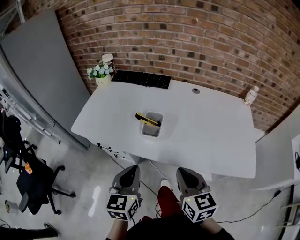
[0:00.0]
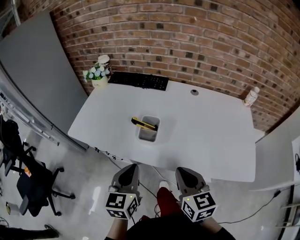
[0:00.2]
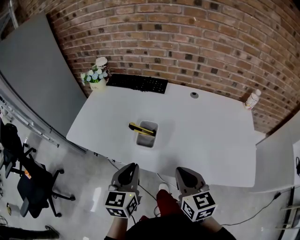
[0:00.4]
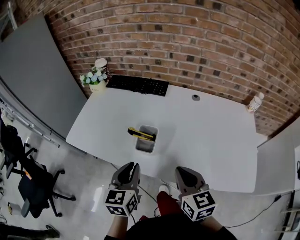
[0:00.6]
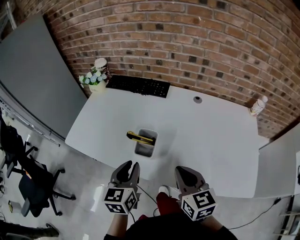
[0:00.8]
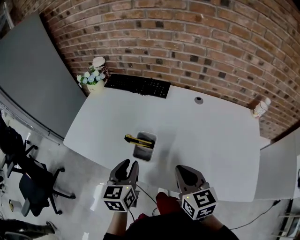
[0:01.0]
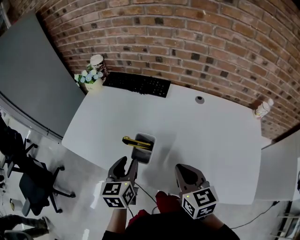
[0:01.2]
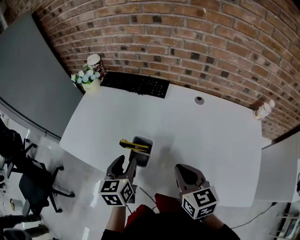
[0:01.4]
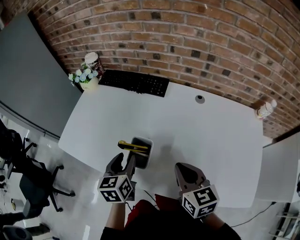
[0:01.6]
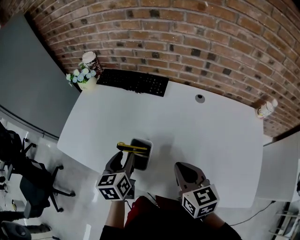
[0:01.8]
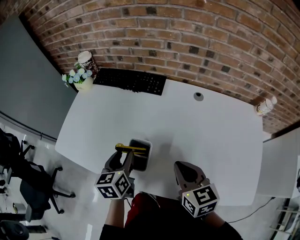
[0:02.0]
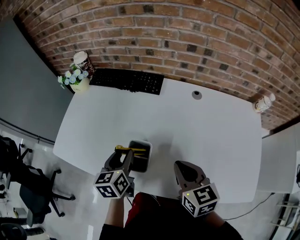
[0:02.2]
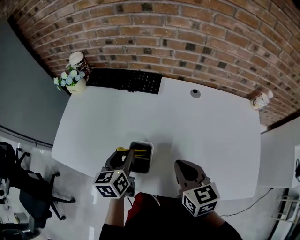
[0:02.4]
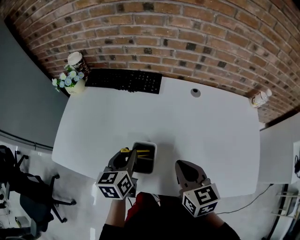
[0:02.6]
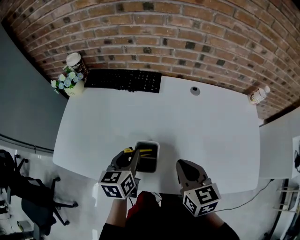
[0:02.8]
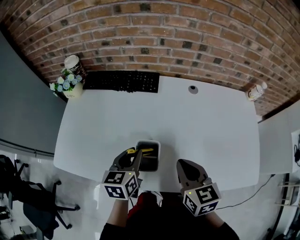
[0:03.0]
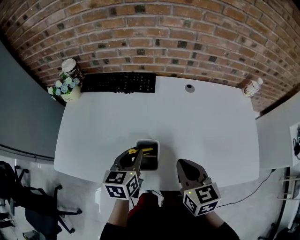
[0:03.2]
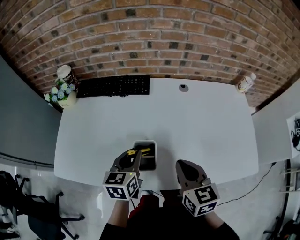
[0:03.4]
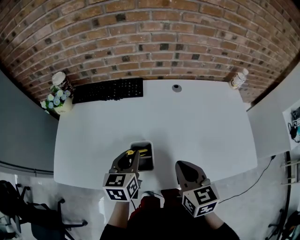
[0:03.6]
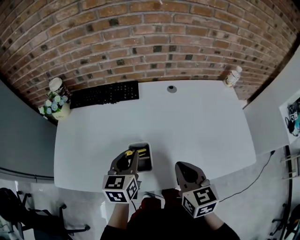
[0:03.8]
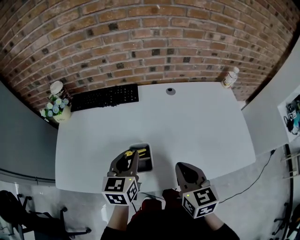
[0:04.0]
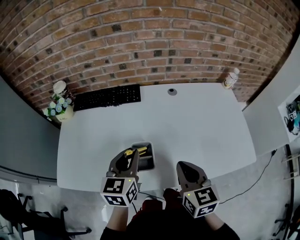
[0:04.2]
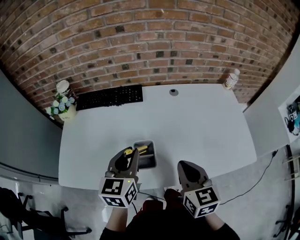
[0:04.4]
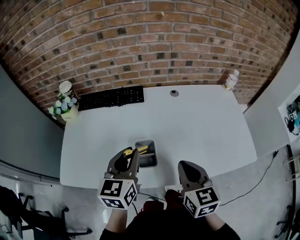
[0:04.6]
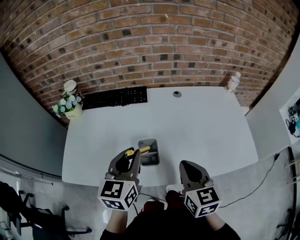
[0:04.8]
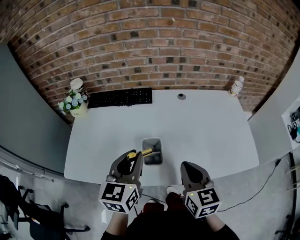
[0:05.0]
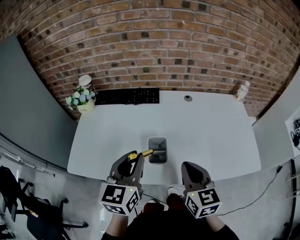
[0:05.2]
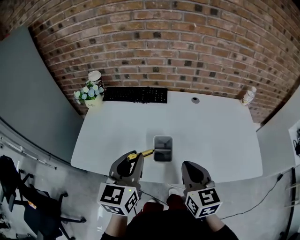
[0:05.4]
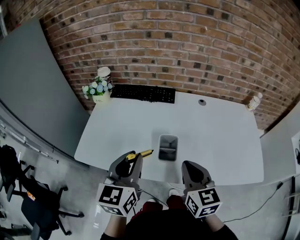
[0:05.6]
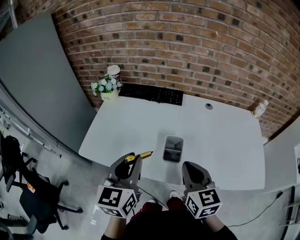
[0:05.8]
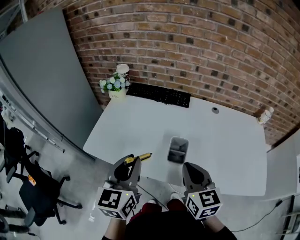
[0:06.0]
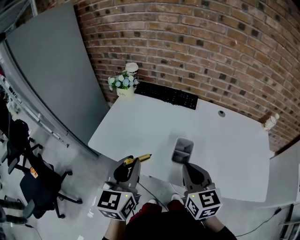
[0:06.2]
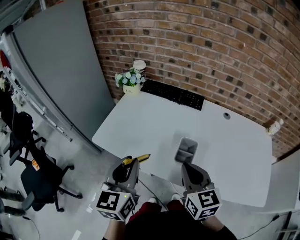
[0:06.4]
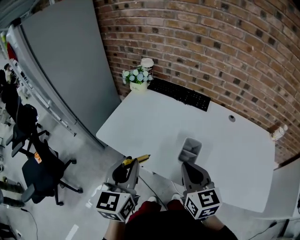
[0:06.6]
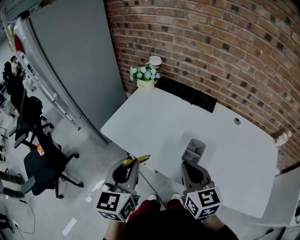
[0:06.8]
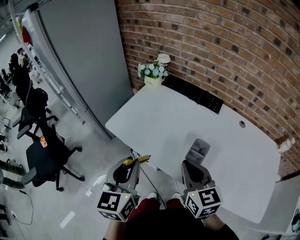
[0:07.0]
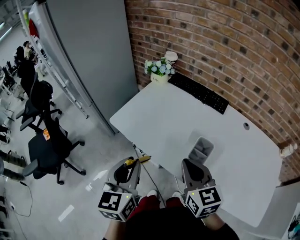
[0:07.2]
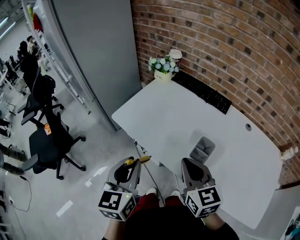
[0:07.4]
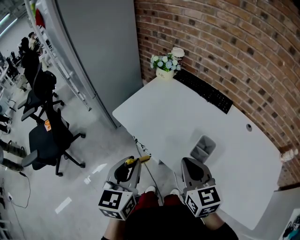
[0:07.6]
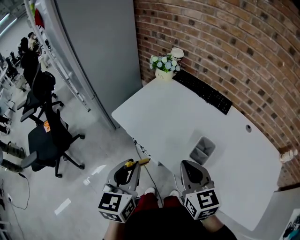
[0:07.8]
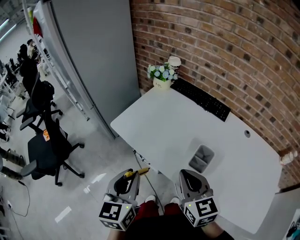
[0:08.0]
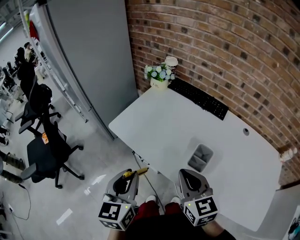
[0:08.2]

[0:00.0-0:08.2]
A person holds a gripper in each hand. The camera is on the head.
0.0 to 1.6 s: The grippers both shift forward by some 20 cm. The left gripper opens.
1.6 to 3.2 s: The left gripper turns by roughly 20 degrees, and closes up.
3.2 to 5.0 s: The left gripper moves upward and backward, approximately 15 cm, and changes its angle by roughly 20 degrees, while the right gripper goes roughly 5 cm backward.
5.0 to 6.6 s: The left gripper shifts by about 20 cm, and turns by roughly 30 degrees, while the right gripper shifts by roughly 15 cm, and rotates roughly 30 degrees.
6.6 to 8.2 s: The left gripper changes place by some 5 cm.

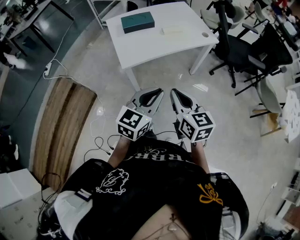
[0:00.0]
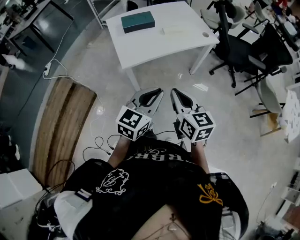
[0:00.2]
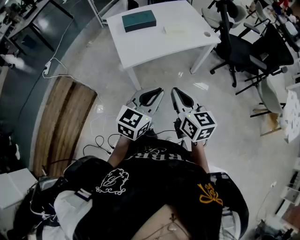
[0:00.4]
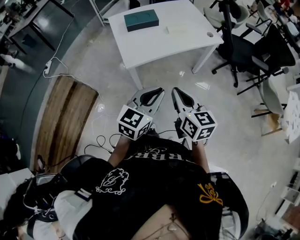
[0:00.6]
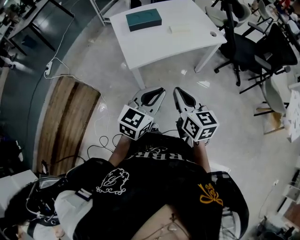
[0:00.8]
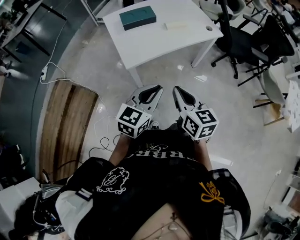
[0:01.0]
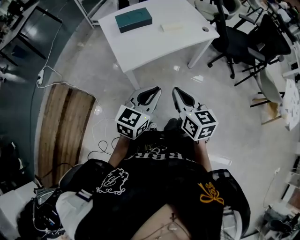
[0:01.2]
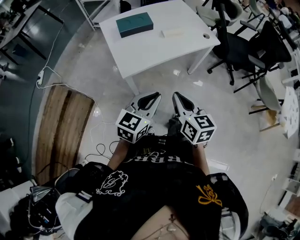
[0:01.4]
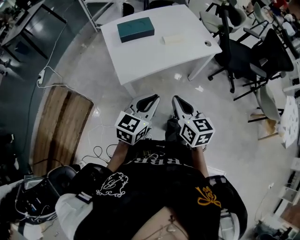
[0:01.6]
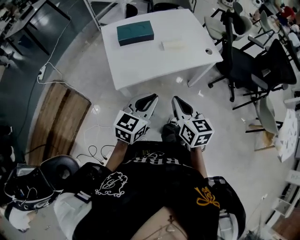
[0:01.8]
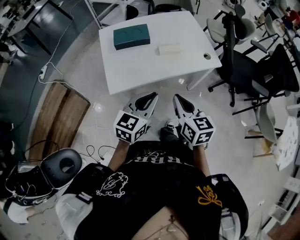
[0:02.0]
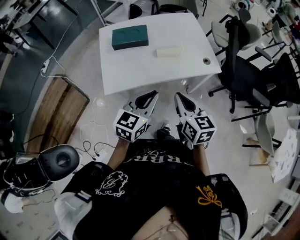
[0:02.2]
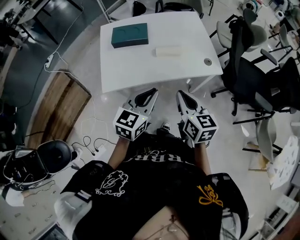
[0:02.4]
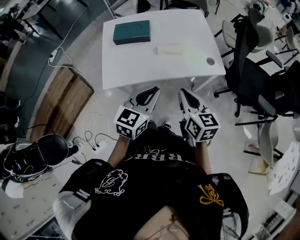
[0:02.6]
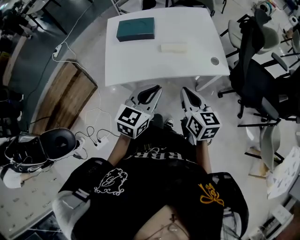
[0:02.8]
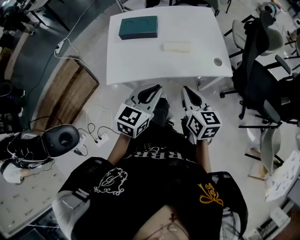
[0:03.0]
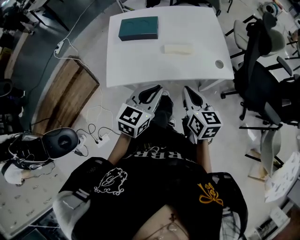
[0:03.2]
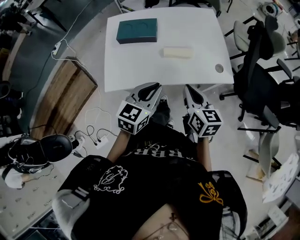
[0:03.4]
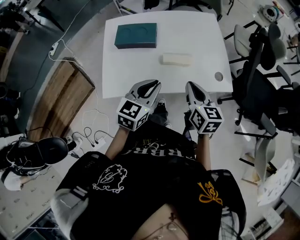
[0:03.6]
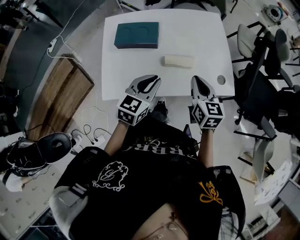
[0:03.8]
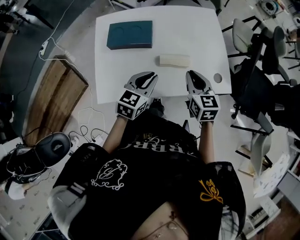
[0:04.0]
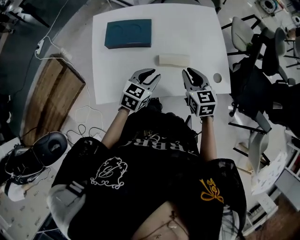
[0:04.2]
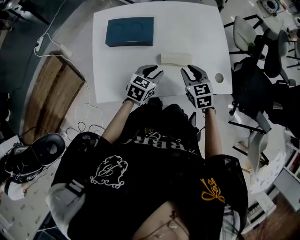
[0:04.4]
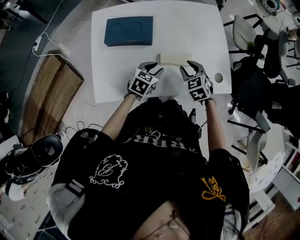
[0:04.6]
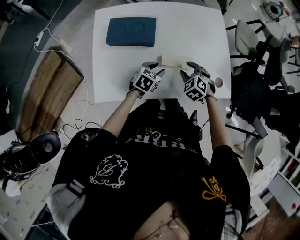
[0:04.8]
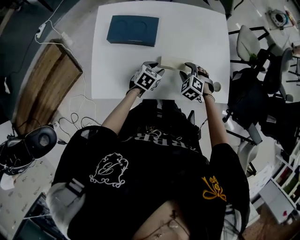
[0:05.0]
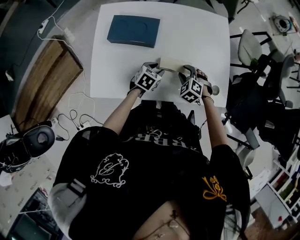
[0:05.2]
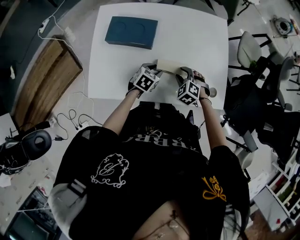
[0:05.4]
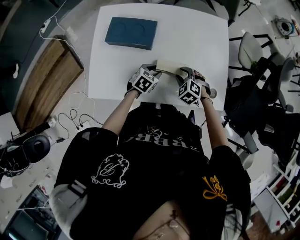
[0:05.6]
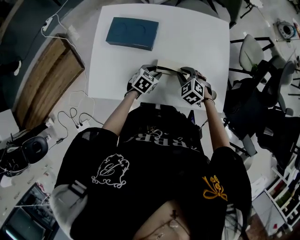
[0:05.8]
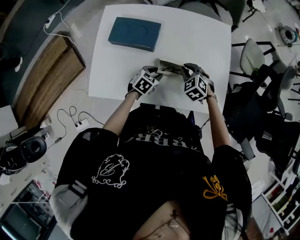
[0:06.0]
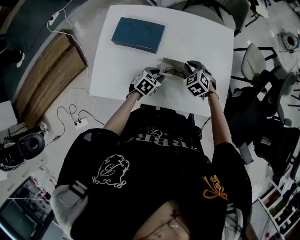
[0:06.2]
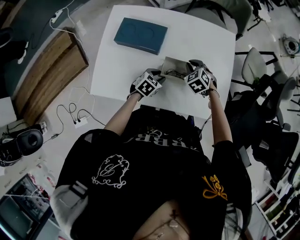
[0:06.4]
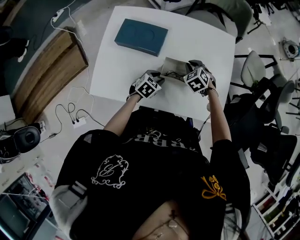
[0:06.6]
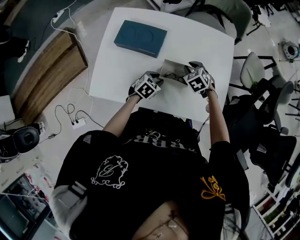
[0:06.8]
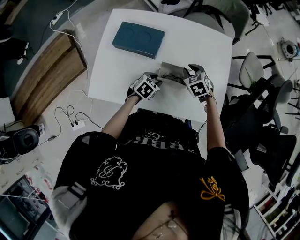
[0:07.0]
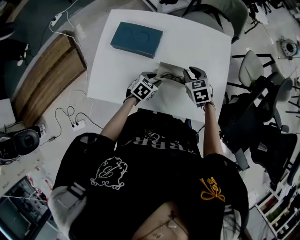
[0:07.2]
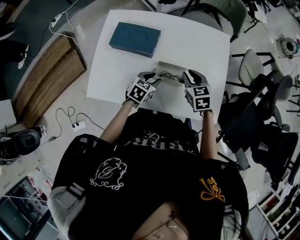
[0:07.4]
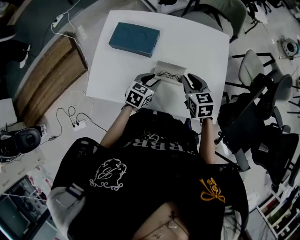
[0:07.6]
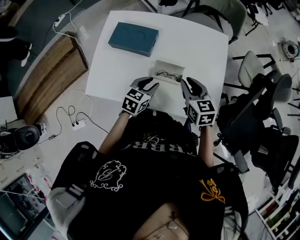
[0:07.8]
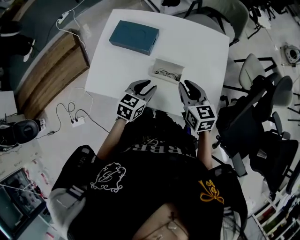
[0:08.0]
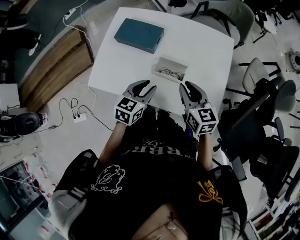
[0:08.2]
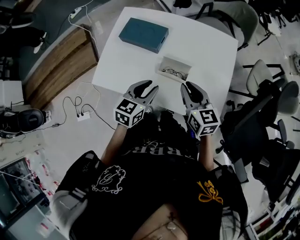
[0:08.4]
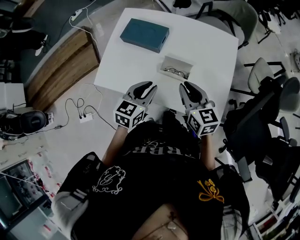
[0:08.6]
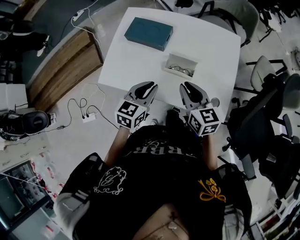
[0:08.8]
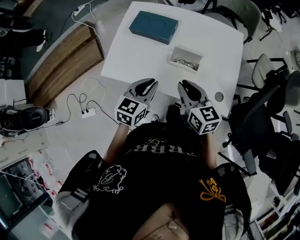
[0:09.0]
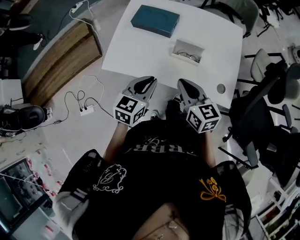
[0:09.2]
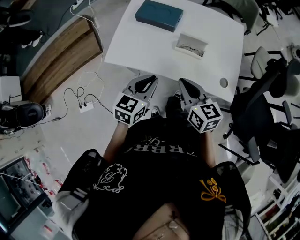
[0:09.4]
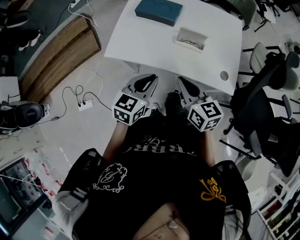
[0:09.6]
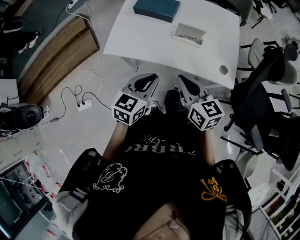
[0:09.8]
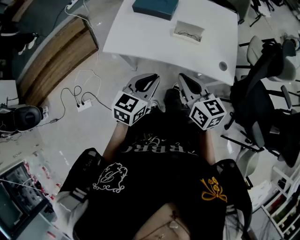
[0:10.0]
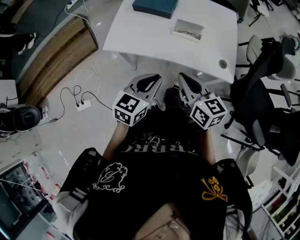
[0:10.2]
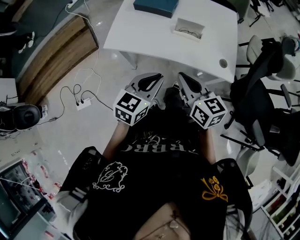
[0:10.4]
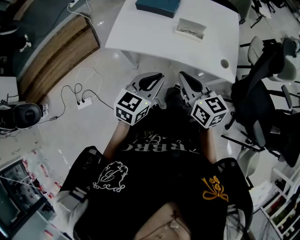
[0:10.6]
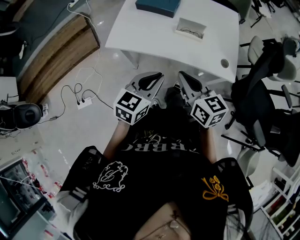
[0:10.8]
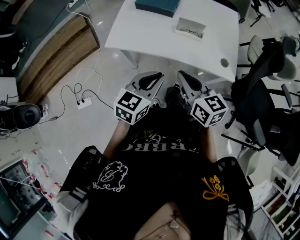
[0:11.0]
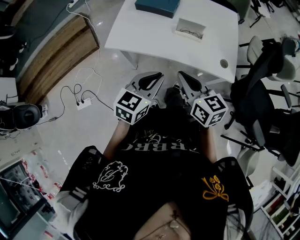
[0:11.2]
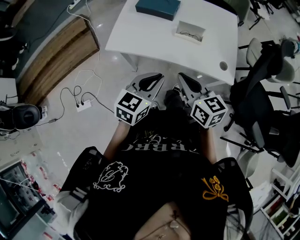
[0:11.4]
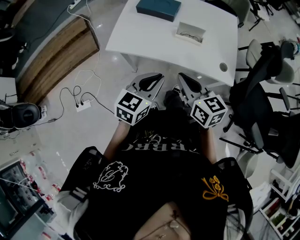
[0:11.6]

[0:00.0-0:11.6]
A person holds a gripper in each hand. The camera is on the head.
0.0 to 1.4 s: The right gripper shifts about 5 cm forward, while the left gripper shifts about 10 cm forward and to the left.
1.4 to 2.8 s: Both grippers travel together forward and to the right, roughly 30 cm. The left gripper swivels roughly 20 degrees.
2.8 to 4.4 s: The two grippers go about 30 cm forward and downward. The right gripper turns by approximately 30 degrees, and opens its fingers.
4.4 to 5.8 s: The grippers both shift downward and forward by approximately 10 cm. The right gripper swivels some 40 degrees.
5.8 to 7.2 s: The right gripper goes some 5 cm forward, and rotates some 30 degrees.
7.2 to 8.8 s: The right gripper goes approximately 20 cm backward and upward, and swivels some 30 degrees, while the left gripper goes some 20 cm upward and backward, and rotates some 30 degrees.
8.8 to 10.2 s: The left gripper travels backward by some 20 cm, while the right gripper goes approximately 25 cm backward and to the left.
10.2 to 11.6 s: There are only small adjustments of the grippers.

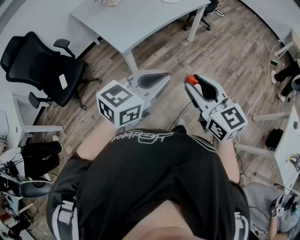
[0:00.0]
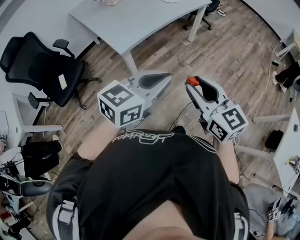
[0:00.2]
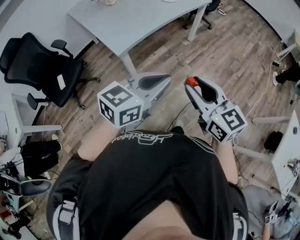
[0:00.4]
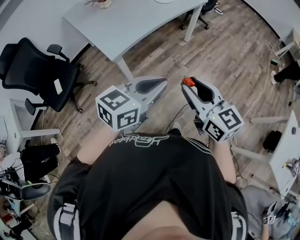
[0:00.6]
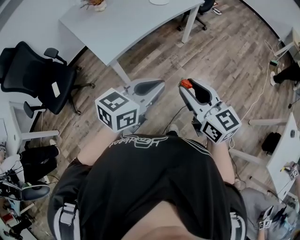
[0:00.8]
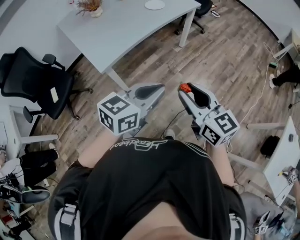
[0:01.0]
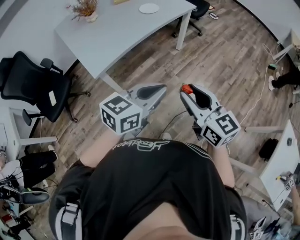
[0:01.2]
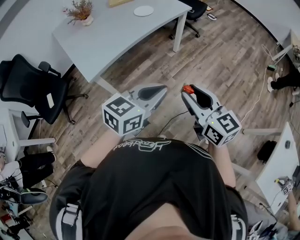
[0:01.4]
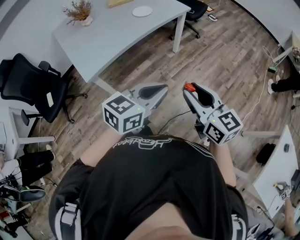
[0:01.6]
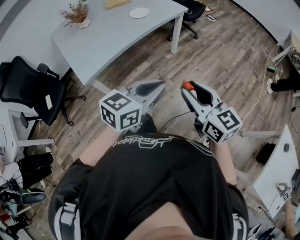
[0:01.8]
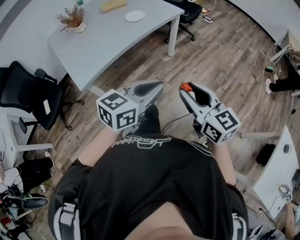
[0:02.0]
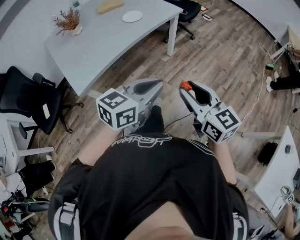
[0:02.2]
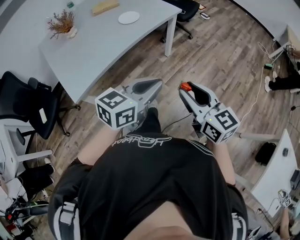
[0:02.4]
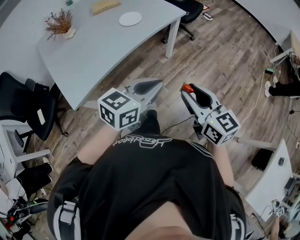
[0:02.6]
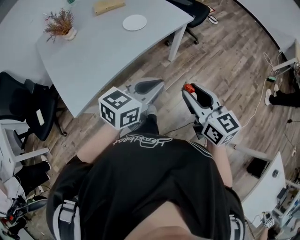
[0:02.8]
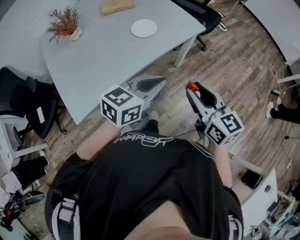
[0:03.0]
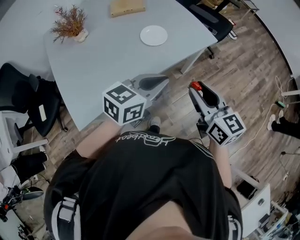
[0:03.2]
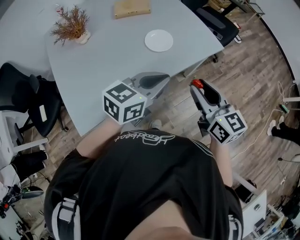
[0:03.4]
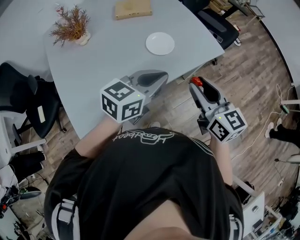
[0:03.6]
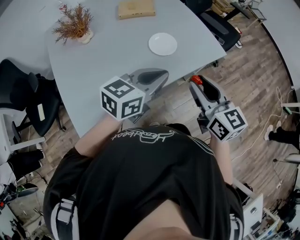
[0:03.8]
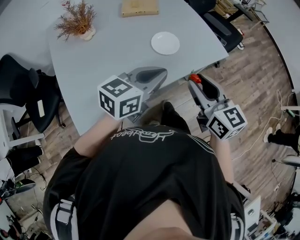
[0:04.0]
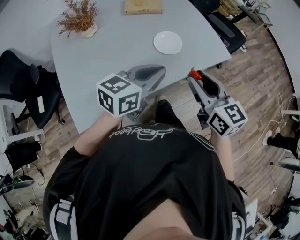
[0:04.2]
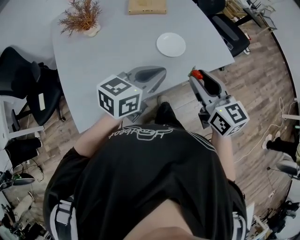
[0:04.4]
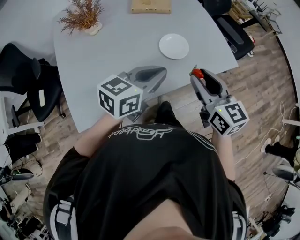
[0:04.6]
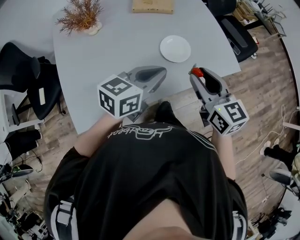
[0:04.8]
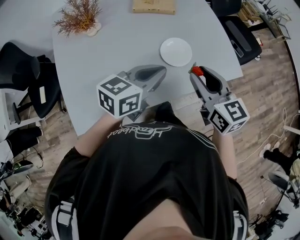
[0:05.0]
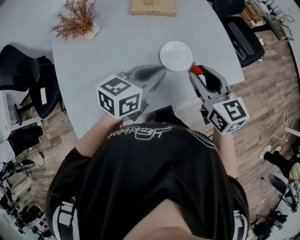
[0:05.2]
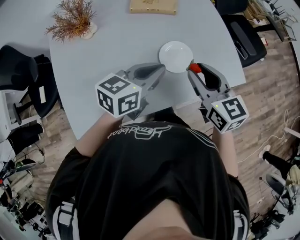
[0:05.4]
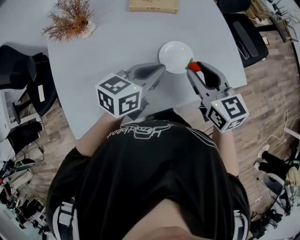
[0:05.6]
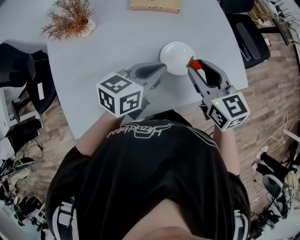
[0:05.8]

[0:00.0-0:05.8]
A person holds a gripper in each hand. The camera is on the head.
0.0 to 1.4 s: The grippers both shift to the right and forward by some 25 cm.
1.4 to 2.8 s: Both grippers move forward, approximately 25 cm.
2.8 to 4.4 s: Both grippers move forward and to the left, some 30 cm.
4.4 to 5.8 s: The left gripper is displaced forward and downward by approximately 15 cm, while the right gripper heads forward, covering some 20 cm.
